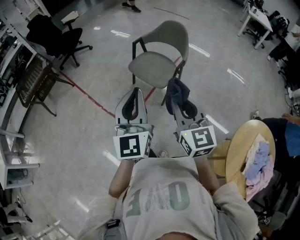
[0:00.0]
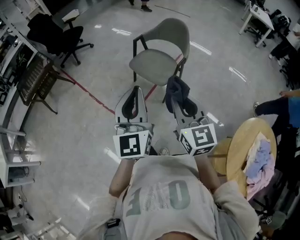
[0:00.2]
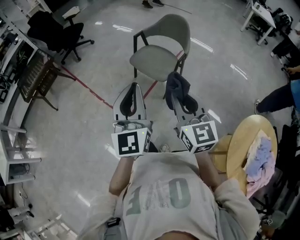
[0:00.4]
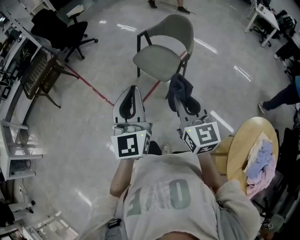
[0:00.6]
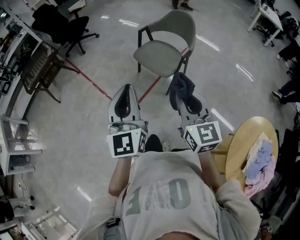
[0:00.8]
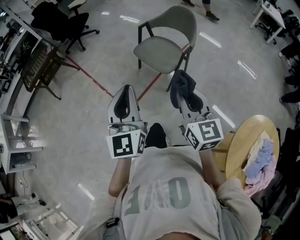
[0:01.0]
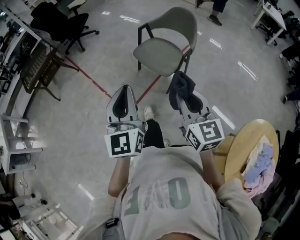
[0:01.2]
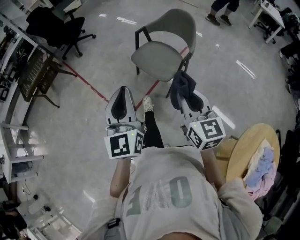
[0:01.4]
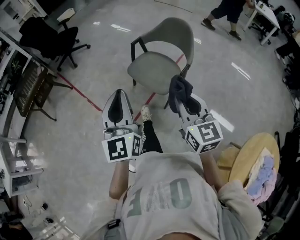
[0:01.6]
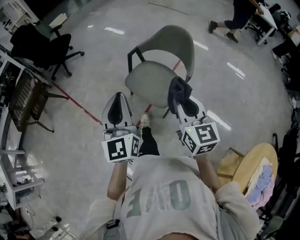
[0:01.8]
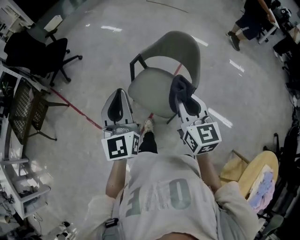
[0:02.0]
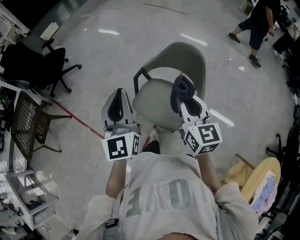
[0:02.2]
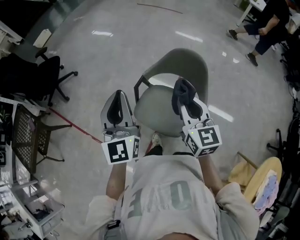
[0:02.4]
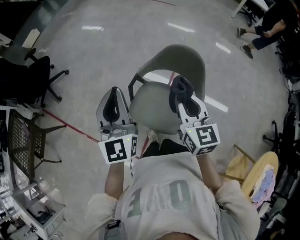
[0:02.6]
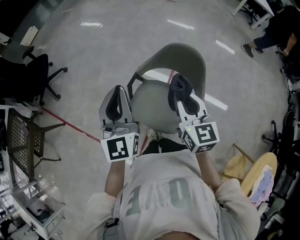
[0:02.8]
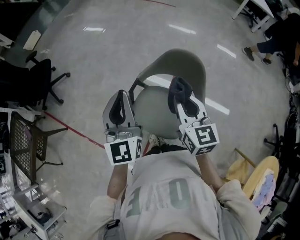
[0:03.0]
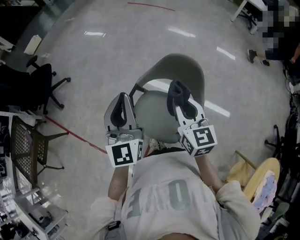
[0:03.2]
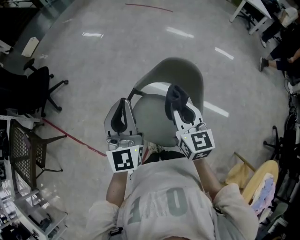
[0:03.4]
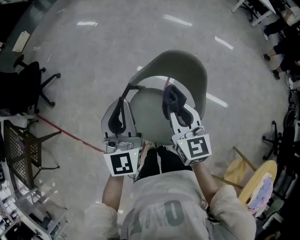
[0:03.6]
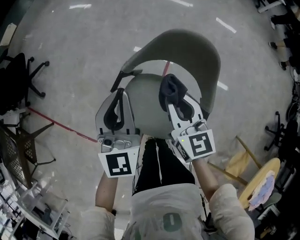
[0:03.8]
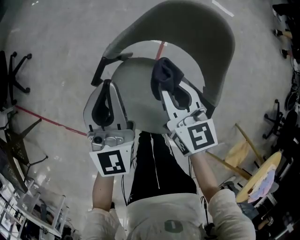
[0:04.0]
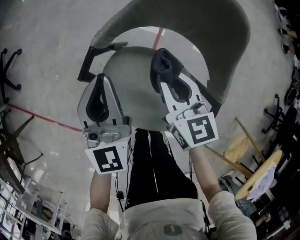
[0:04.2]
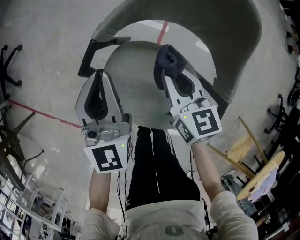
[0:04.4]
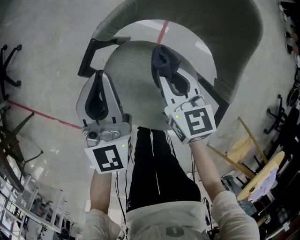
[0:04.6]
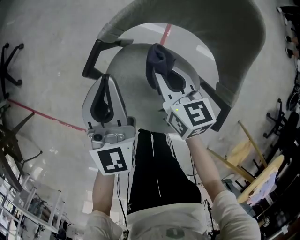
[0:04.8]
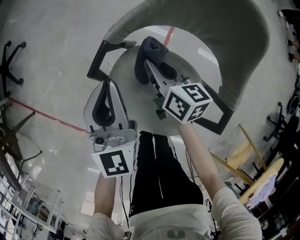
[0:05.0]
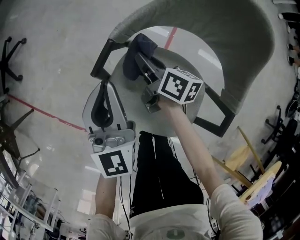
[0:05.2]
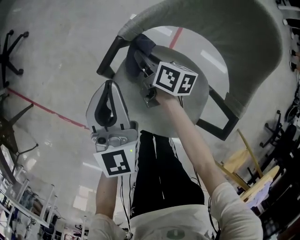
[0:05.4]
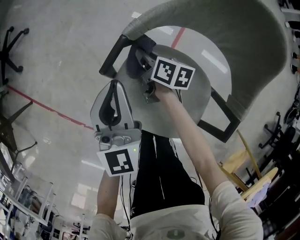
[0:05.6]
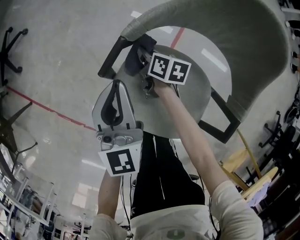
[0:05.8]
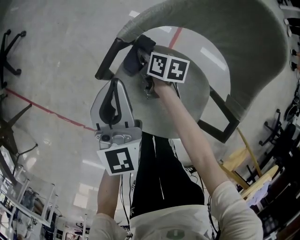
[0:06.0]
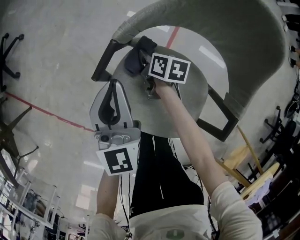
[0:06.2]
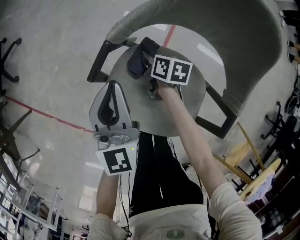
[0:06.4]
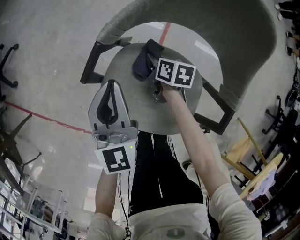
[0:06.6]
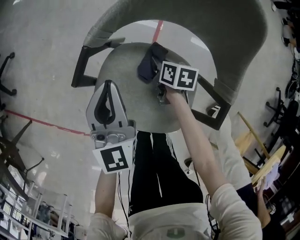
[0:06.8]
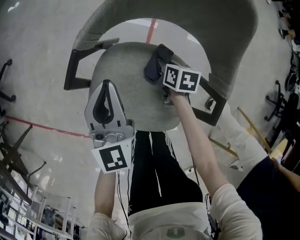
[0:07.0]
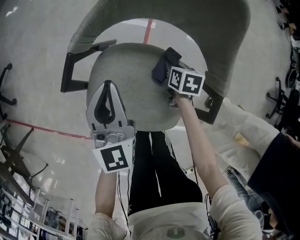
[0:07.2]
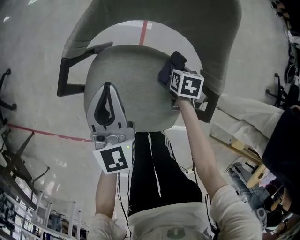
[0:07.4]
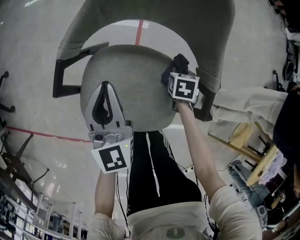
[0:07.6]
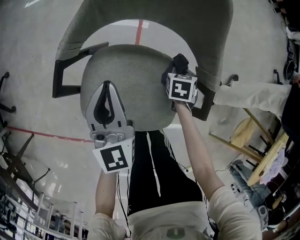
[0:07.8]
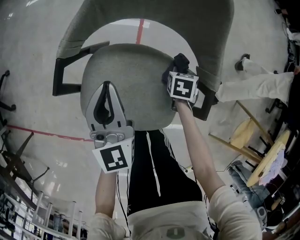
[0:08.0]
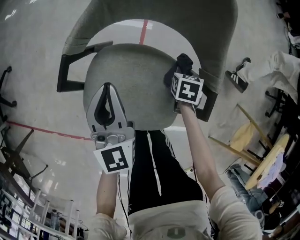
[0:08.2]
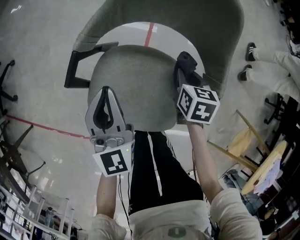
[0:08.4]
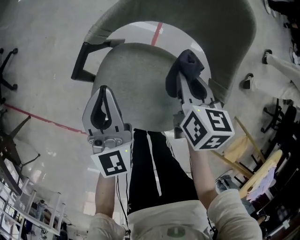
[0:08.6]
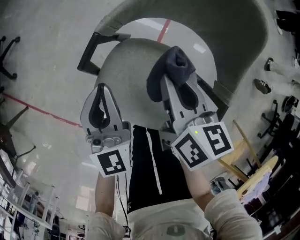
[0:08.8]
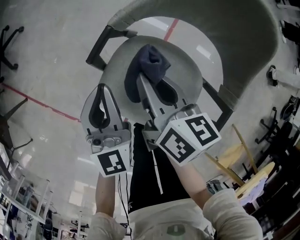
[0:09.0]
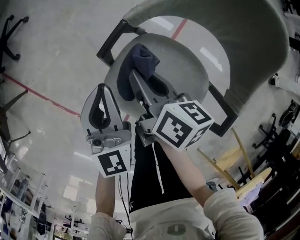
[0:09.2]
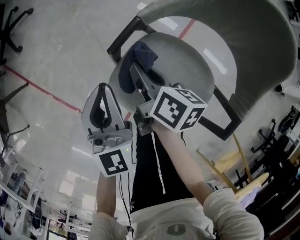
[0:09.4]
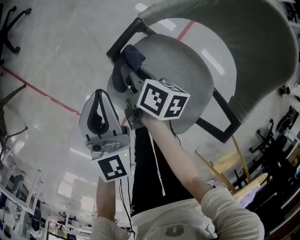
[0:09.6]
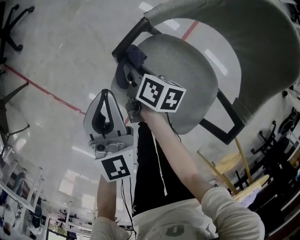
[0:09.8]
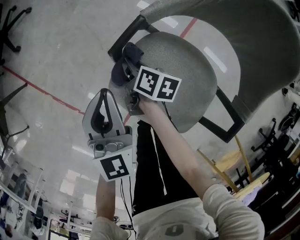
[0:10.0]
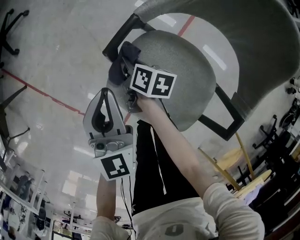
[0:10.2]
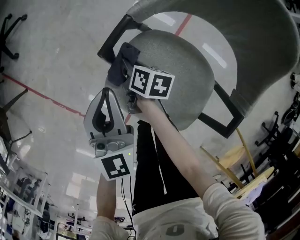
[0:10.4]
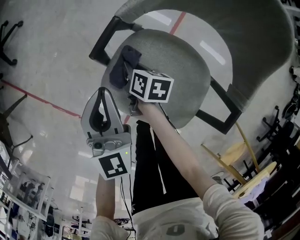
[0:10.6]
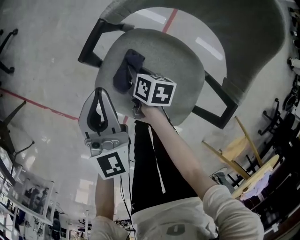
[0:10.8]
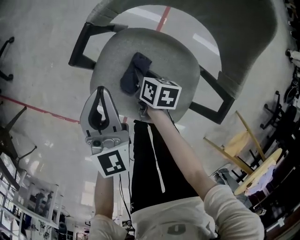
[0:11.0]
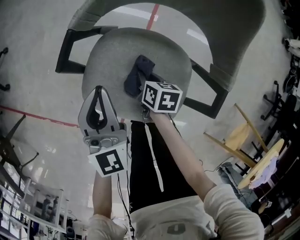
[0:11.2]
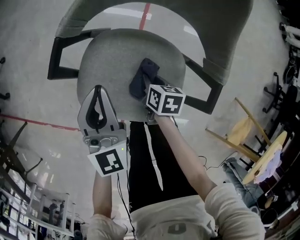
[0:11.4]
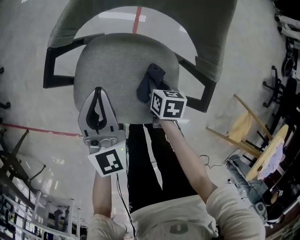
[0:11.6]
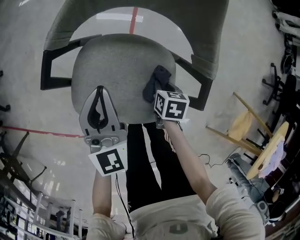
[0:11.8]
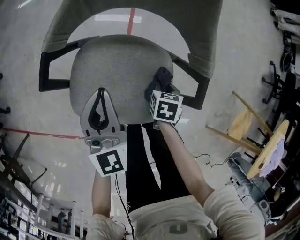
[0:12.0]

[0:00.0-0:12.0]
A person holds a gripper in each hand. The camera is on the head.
0:00.0 to 0:01.6: The two grippers go some 15 cm forward.
0:01.6 to 0:03.0: Both grippers are carried forward, some 50 cm.
0:03.0 to 0:04.4: The grippers both shift downward by approximately 35 cm.
0:04.4 to 0:06.0: The left gripper goes roughly 5 cm downward; the right gripper goes about 25 cm downward, forward and to the left, and turns by some 40 degrees.
0:06.0 to 0:07.6: The right gripper shifts by some 35 cm, and turns by roughly 50 degrees, while the left gripper moves roughly 10 cm.
0:07.6 to 0:09.0: The left gripper shifts by roughly 10 cm; the right gripper ends up about 35 cm from where it was, and points its fingers roughly 40 degrees further upward.
0:09.0 to 0:10.4: The right gripper moves downward and to the left, approximately 25 cm, and changes its angle by roughly 20 degrees. The left gripper shifts by some 5 cm.
0:10.4 to 0:12.0: The right gripper moves about 35 cm, and changes its angle by approximately 40 degrees. Meanwhile the left gripper changes place by some 15 cm, and turns by some 20 degrees.

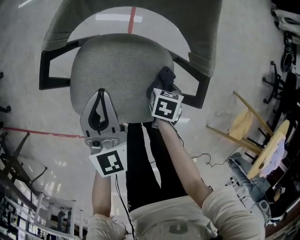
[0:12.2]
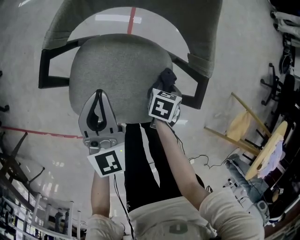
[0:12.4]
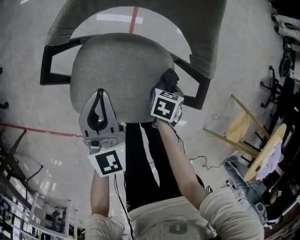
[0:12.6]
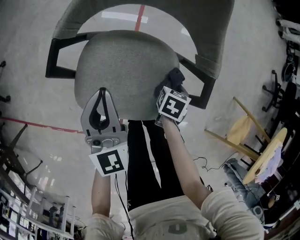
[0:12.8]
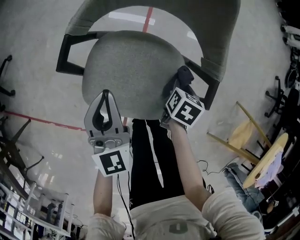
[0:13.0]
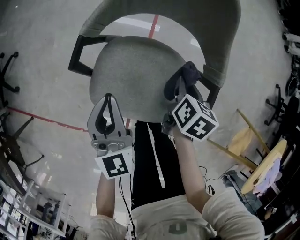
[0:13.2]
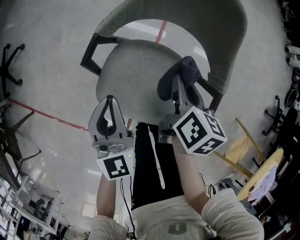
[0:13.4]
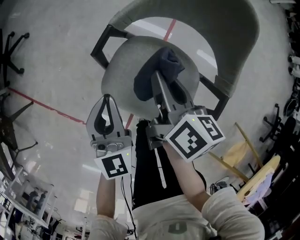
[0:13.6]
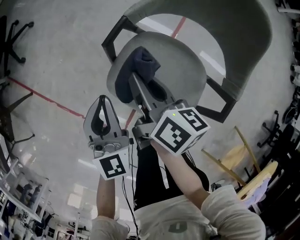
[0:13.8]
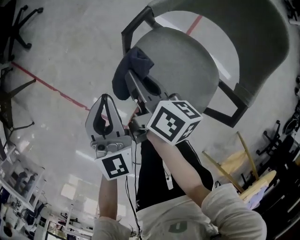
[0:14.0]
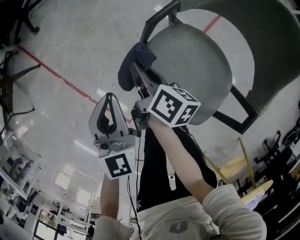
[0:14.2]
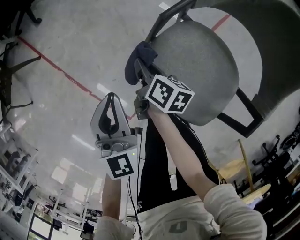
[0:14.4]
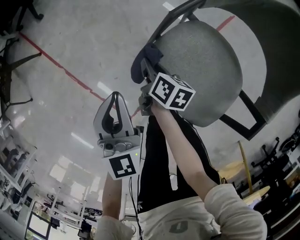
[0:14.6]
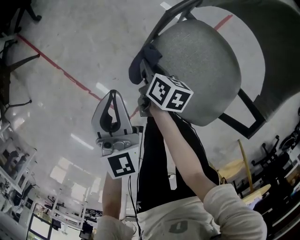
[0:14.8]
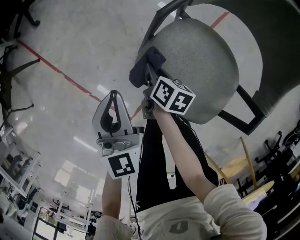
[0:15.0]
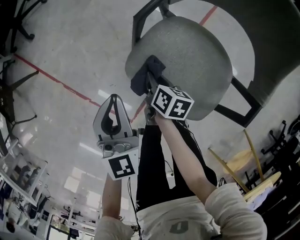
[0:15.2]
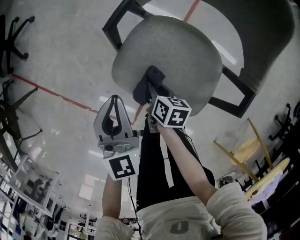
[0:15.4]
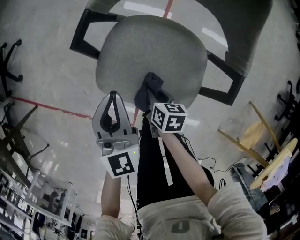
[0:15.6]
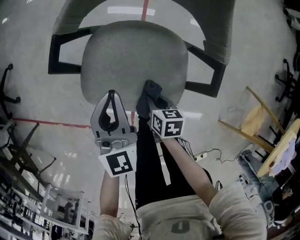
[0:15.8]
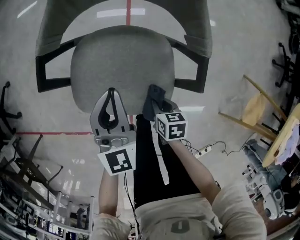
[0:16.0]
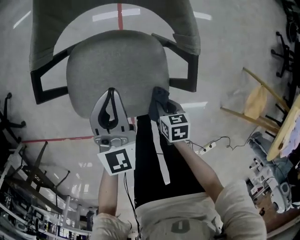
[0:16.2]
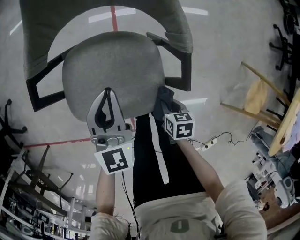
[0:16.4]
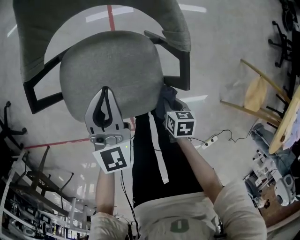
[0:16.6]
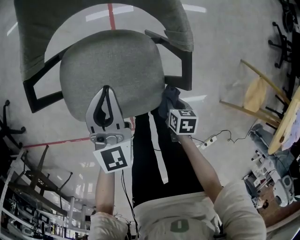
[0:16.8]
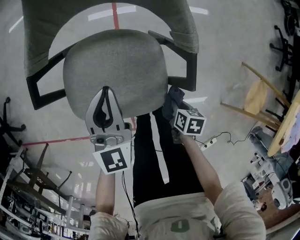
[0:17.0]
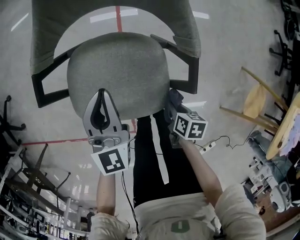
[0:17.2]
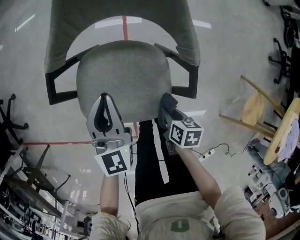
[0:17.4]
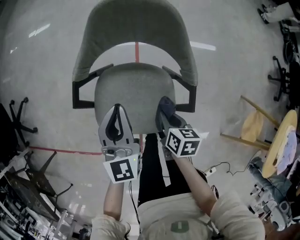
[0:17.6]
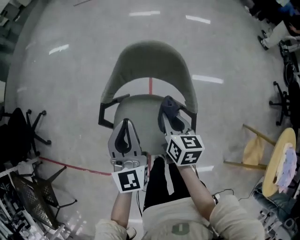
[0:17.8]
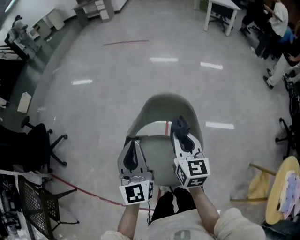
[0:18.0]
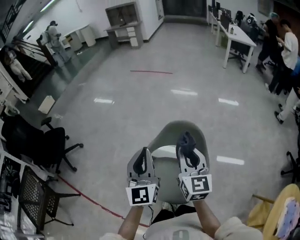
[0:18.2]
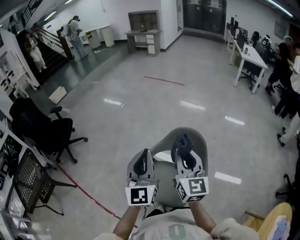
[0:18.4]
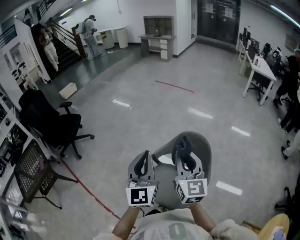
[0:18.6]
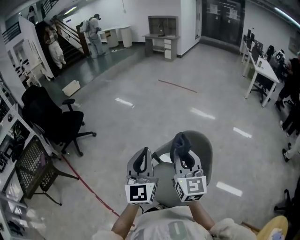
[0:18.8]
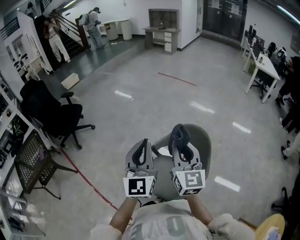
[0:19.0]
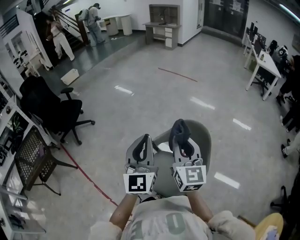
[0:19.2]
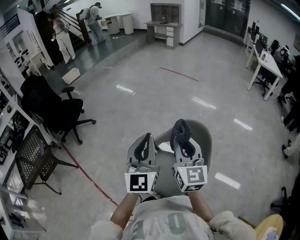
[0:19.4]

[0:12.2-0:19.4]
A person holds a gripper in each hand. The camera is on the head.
0:12.2 to 0:13.6: The left gripper moves about 15 cm. The right gripper travels upward by approximately 25 cm, and tips its fingers upward by roughly 40 degrees.
0:13.6 to 0:15.0: The right gripper travels downward and to the left by some 30 cm, and swivels some 20 degrees. Meanwhile the left gripper is displaced to the left and downward by approximately 15 cm.
0:15.0 to 0:16.6: The right gripper moves approximately 40 cm, and swivels some 30 degrees, while the left gripper shifts by some 35 cm, and rotates about 50 degrees.
0:16.6 to 0:18.0: The right gripper is displaced upward and forward by approximately 60 cm, and angles its fingers upward, by some 50 degrees, while the left gripper shifts roughly 35 cm upward, and turns by some 30 degrees.
0:18.0 to 0:19.4: The left gripper is displaced upward, to the left and backward by roughly 20 cm; the right gripper travels upward and to the left by roughly 20 cm, and turns by roughly 30 degrees.

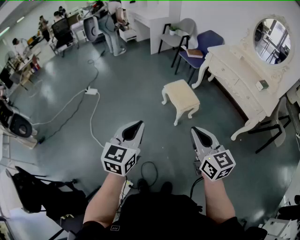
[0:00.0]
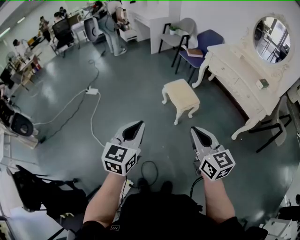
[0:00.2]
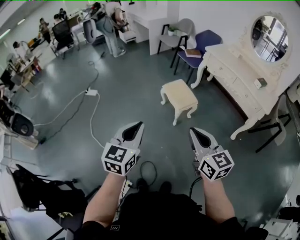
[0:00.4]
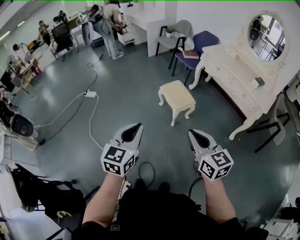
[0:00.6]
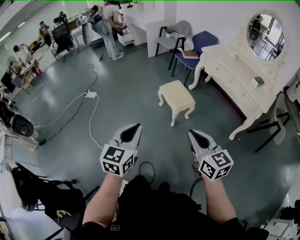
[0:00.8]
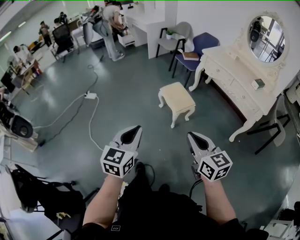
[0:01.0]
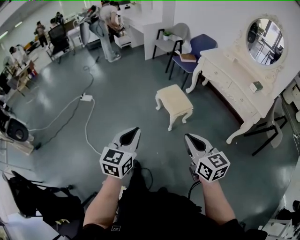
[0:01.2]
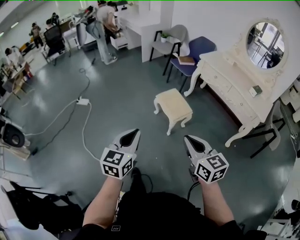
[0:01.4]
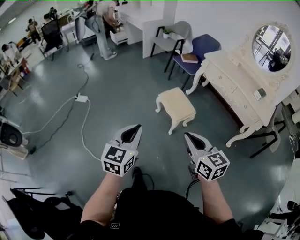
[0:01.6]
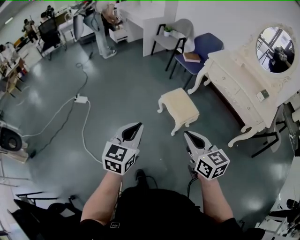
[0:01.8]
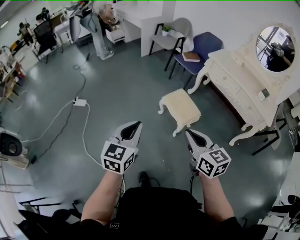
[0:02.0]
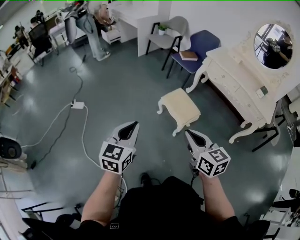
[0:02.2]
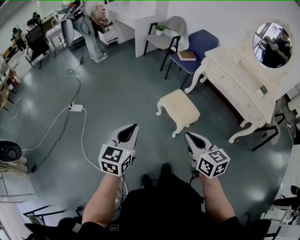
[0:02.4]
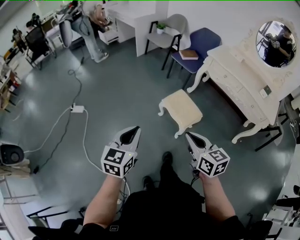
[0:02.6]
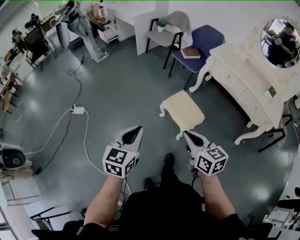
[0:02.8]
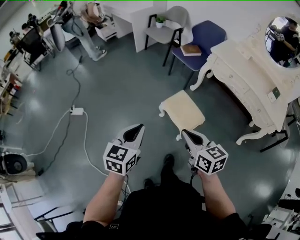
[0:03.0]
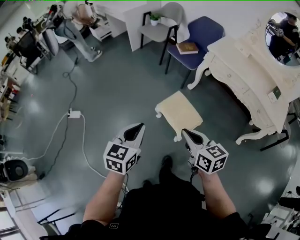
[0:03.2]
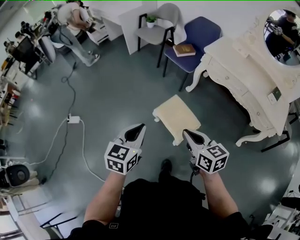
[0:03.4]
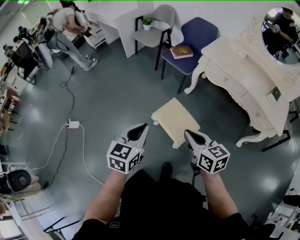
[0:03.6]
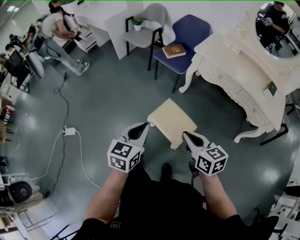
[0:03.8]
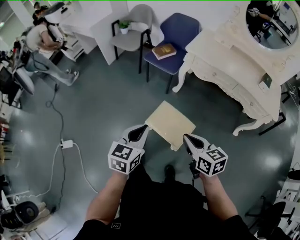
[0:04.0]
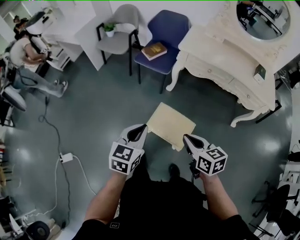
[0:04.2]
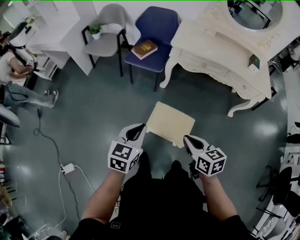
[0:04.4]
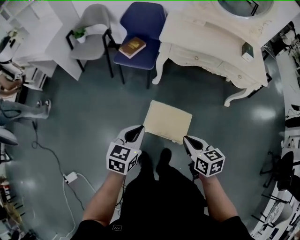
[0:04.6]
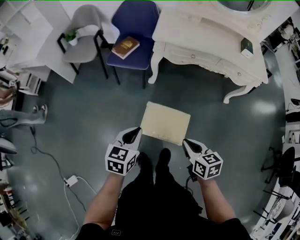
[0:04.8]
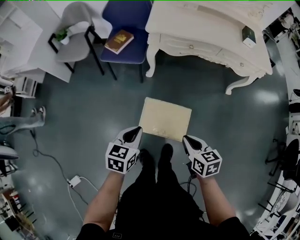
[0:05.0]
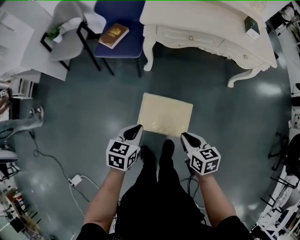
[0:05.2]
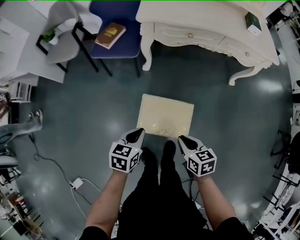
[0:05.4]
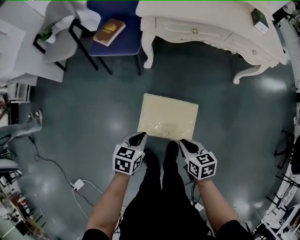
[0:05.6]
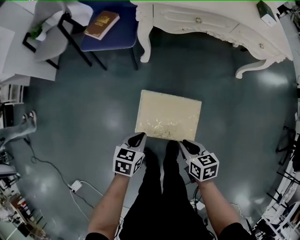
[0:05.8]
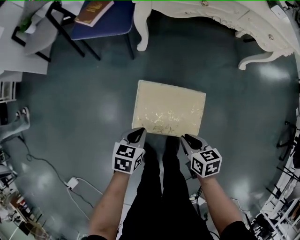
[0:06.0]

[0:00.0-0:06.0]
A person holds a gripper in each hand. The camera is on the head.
0:00.0 to 0:01.6: The grippers both shift forward by approximately 10 cm.
0:01.6 to 0:03.0: The two grippers go about 25 cm forward.
0:03.0 to 0:04.4: The right gripper shifts by some 20 cm, and swivels about 30 degrees. The left gripper ends up some 30 cm from where it was, and rotates some 30 degrees.
0:04.4 to 0:06.0: The two grippers go about 35 cm downward. The right gripper changes its angle by approximately 30 degrees. Meanwhile the left gripper swivels approximately 30 degrees.
